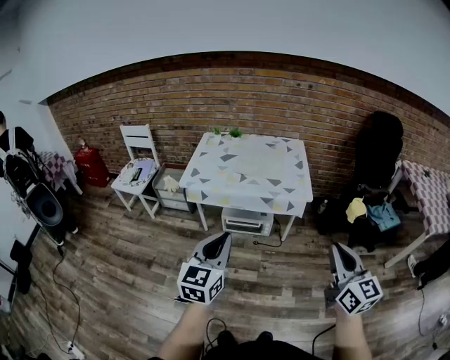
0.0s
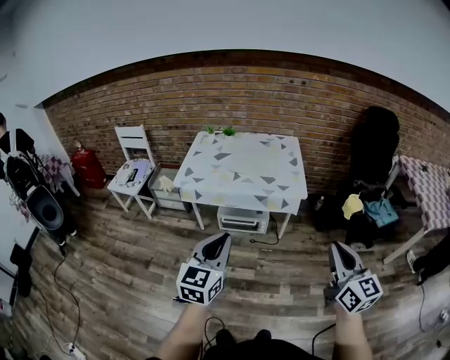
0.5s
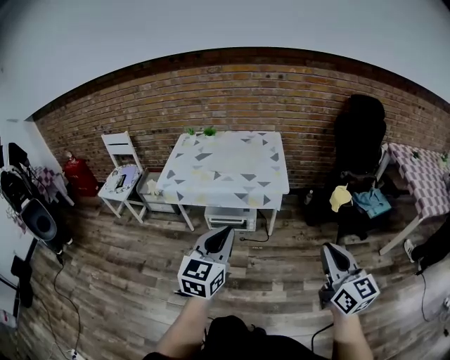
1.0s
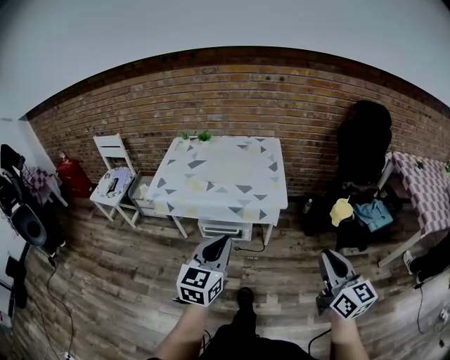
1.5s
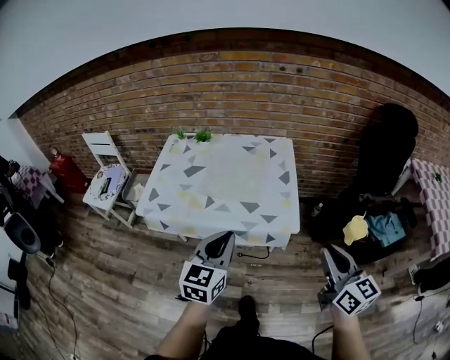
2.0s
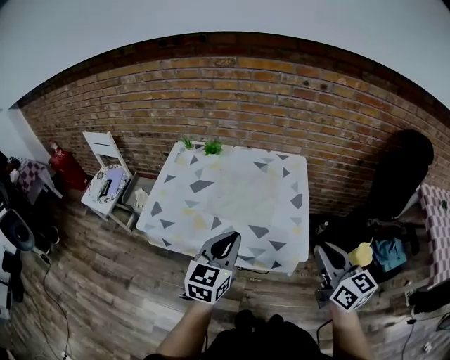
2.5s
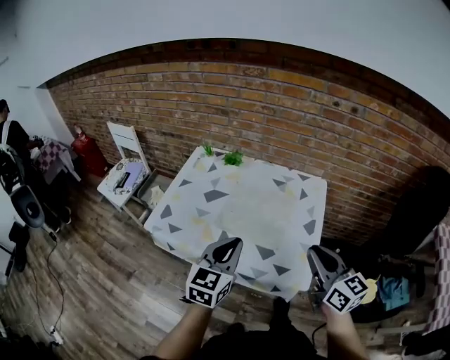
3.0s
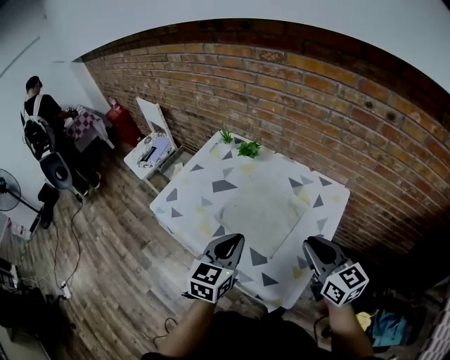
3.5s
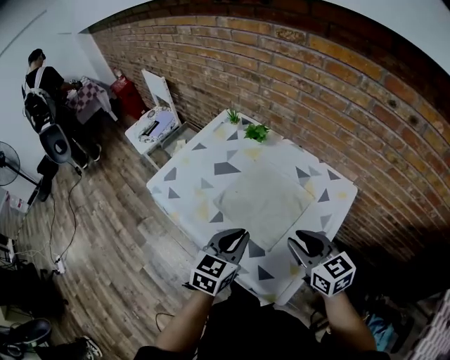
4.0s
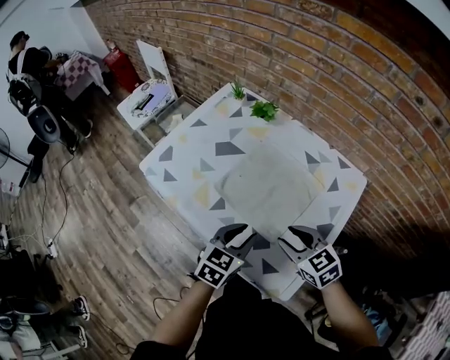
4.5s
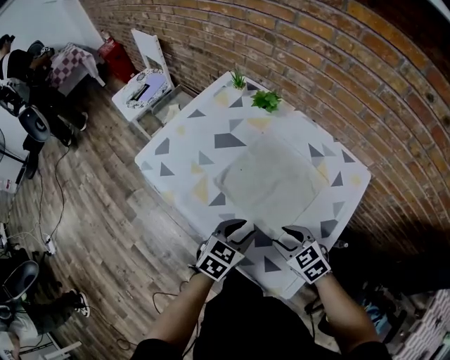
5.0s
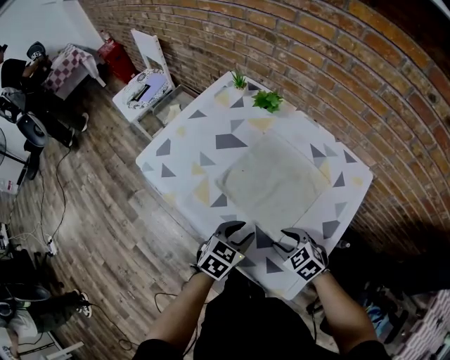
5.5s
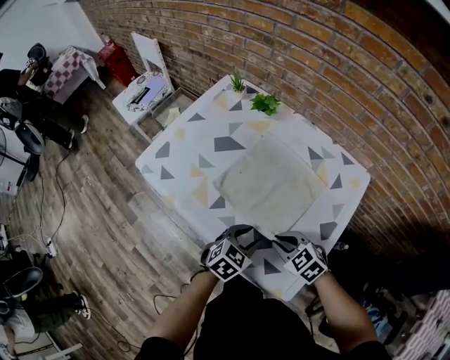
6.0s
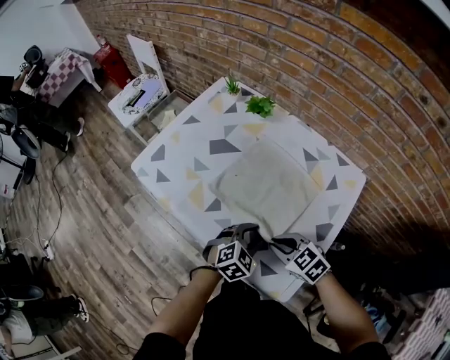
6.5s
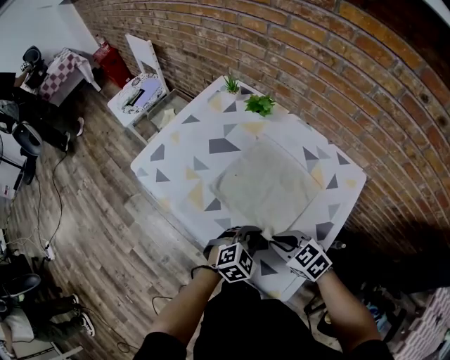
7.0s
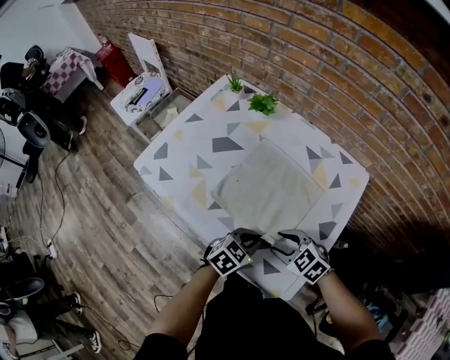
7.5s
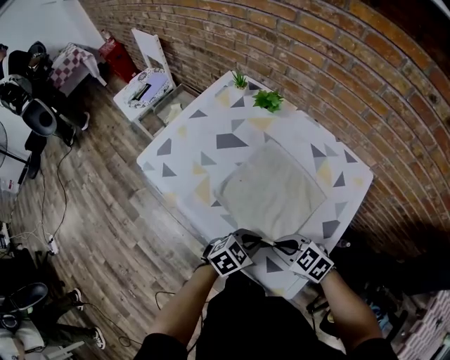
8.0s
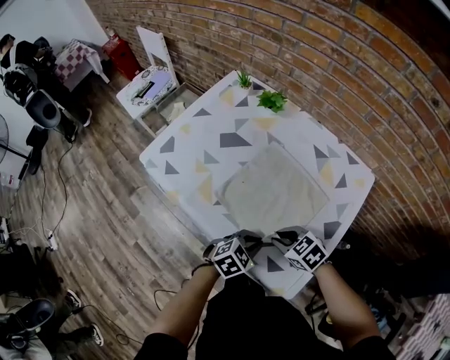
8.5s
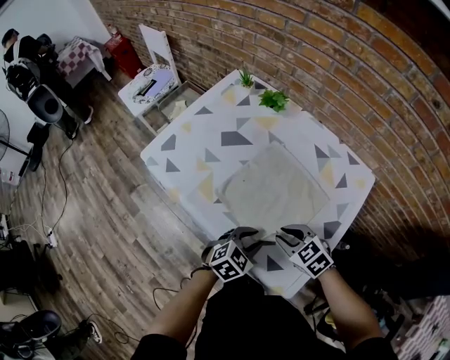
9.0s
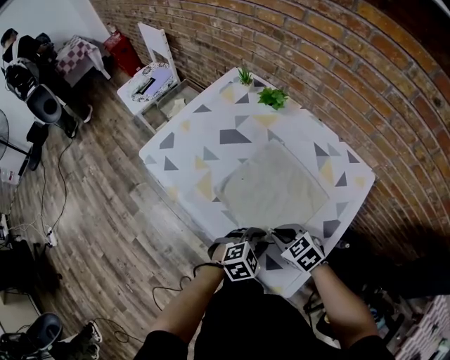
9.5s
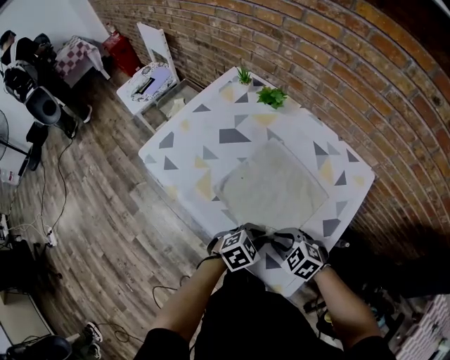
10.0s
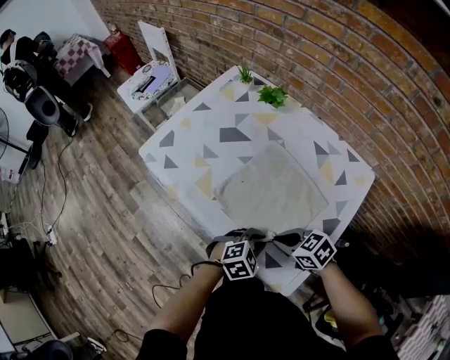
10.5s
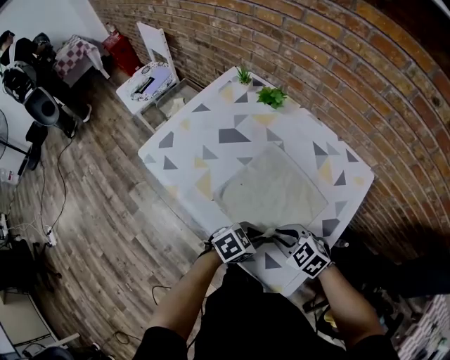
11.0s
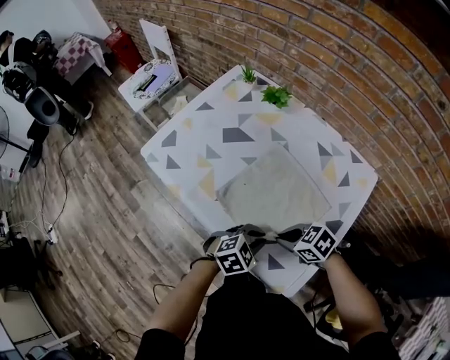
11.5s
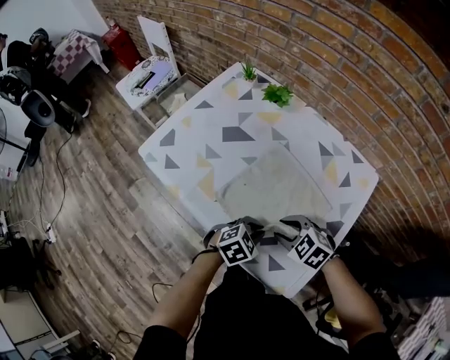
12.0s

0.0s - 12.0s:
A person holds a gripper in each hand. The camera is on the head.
0.0s - 2.0s: The left gripper travels forward and to the right by about 30 cm. Meanwhile the right gripper goes roughly 25 cm forward.
2.0s - 4.0s: The left gripper moves about 25 cm, and rotates about 30 degrees, while the right gripper changes place by roughly 40 cm, changes its angle by approximately 50 degrees, and opens its fingers.
4.0s - 6.0s: Both grippers move downward, some 15 cm. The right gripper turns by roughly 40 degrees. The left gripper changes its angle by about 30 degrees, and opens up.
6.0s - 8.0s: The left gripper closes up. Meanwhile the right gripper opens and closes again.
8.0s - 10.0s: The left gripper opens and closes again.
10.0s - 12.0s: The right gripper moves about 5 cm.

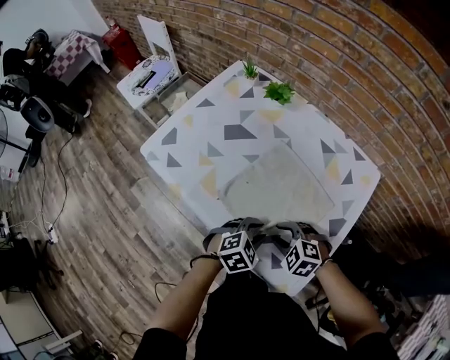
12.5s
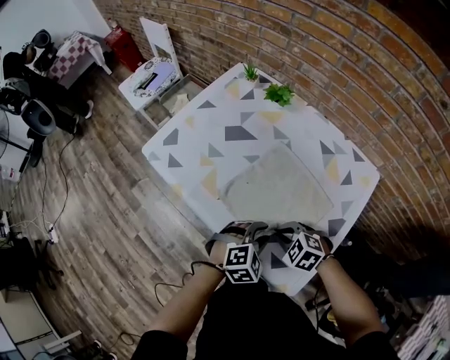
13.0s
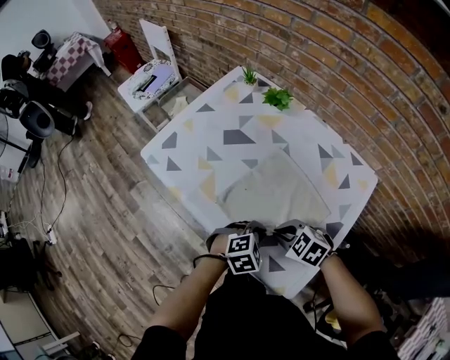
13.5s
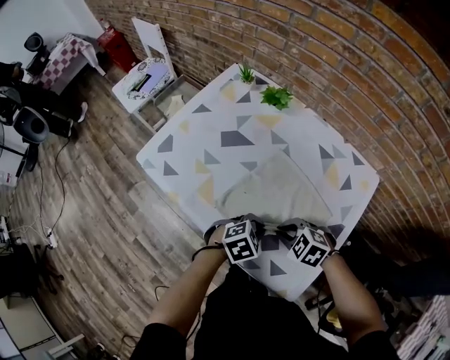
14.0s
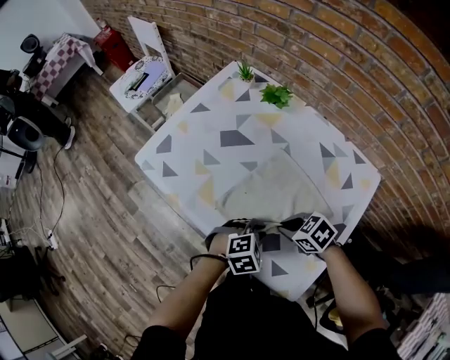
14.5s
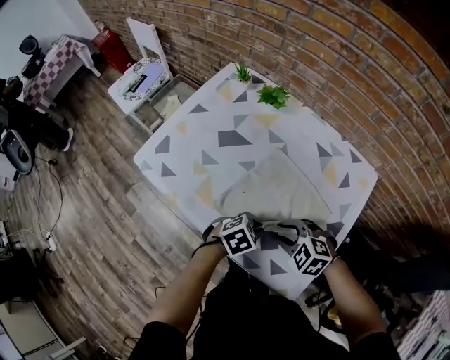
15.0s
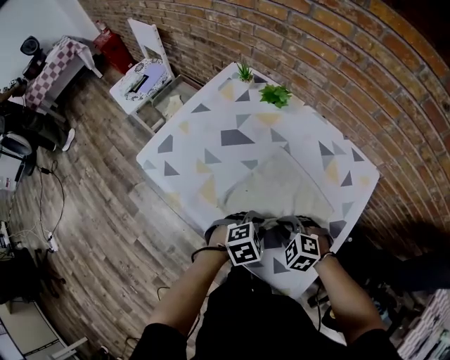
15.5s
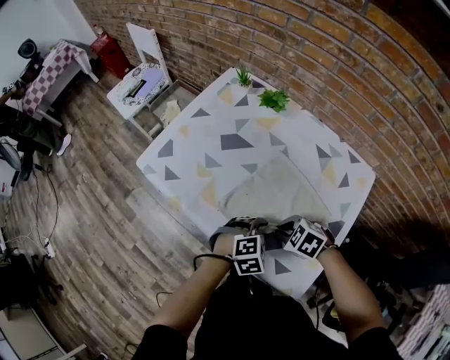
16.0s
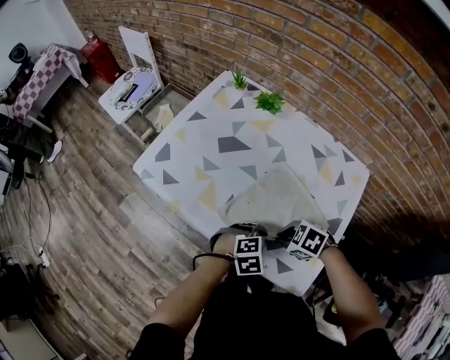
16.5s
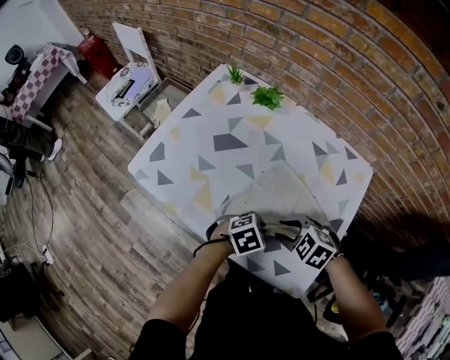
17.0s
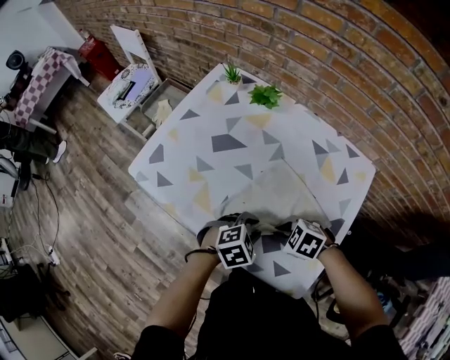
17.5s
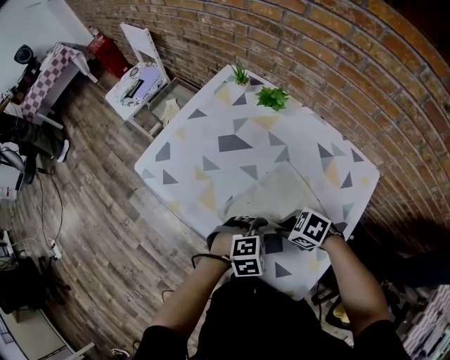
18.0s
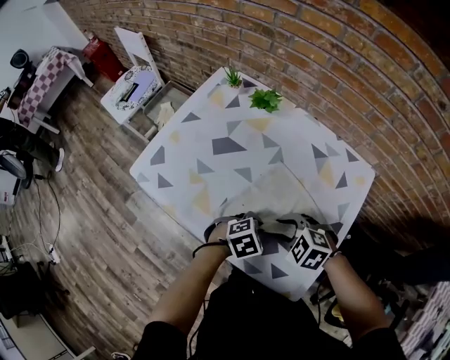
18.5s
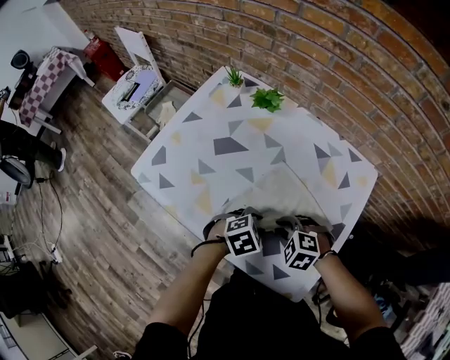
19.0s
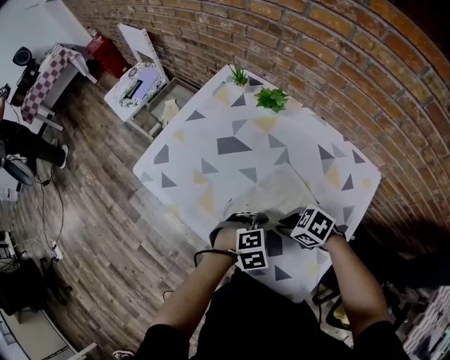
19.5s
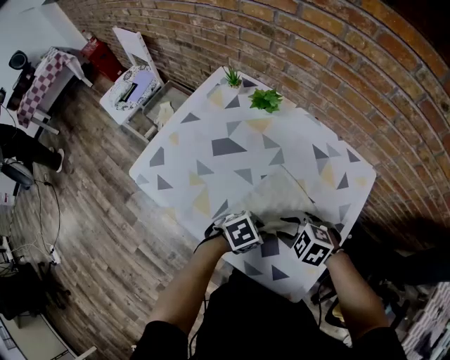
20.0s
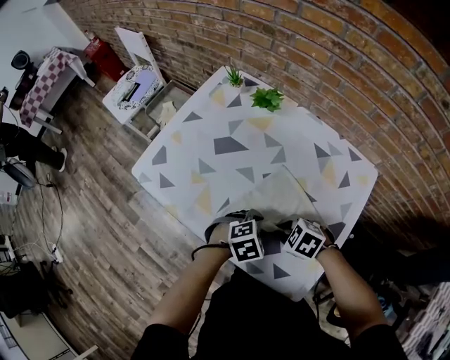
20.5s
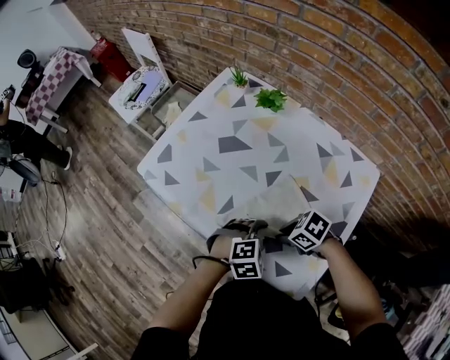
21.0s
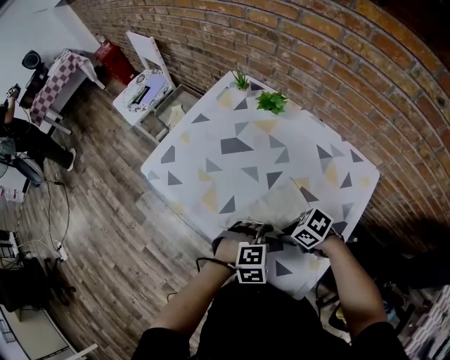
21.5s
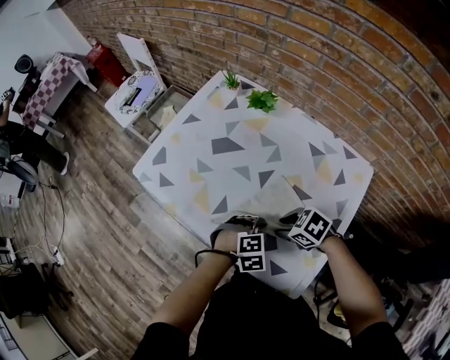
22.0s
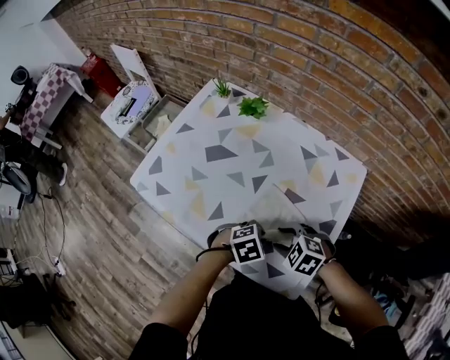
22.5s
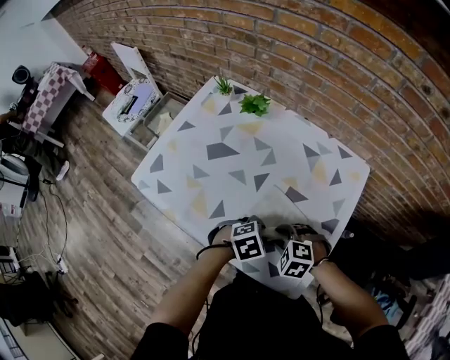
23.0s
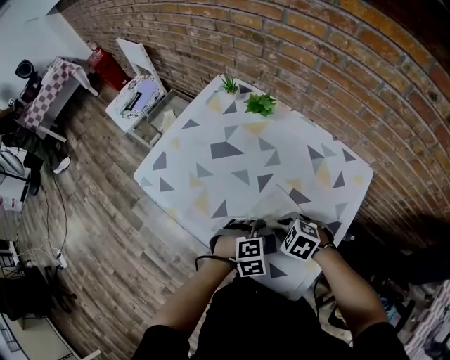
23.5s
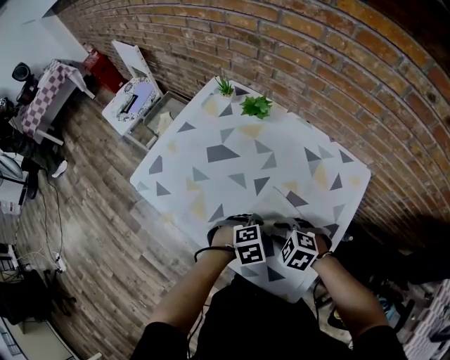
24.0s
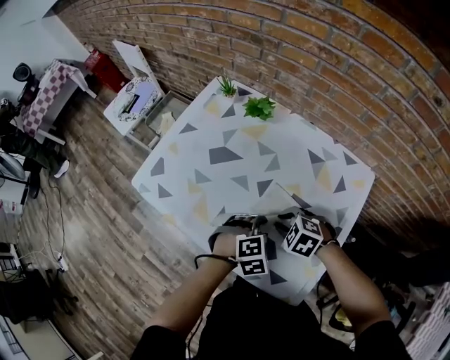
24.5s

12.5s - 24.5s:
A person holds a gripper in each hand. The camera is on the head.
12.5s - 14.5s: The right gripper moves approximately 5 cm, changes its angle by roughly 40 degrees, and closes up.
14.5s - 16.5s: The right gripper opens and closes again.
16.5s - 18.5s: The left gripper opens, then closes once more. The right gripper goes up and down, some 5 cm each way, reversing 2 times, swivels approximately 20 degrees, and opens.
18.5s - 20.5s: The right gripper closes up. The left gripper opens.
20.5s - 22.5s: The right gripper opens. Meanwhile the left gripper closes its fingers.
22.5s - 24.5s: The right gripper ends up roughly 5 cm from where it was, and closes its fingers, while the left gripper moves roughly 5 cm, rotates some 20 degrees, and opens its fingers.

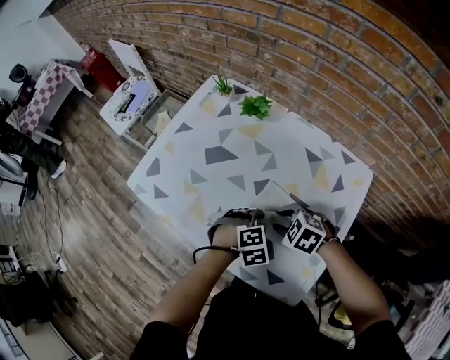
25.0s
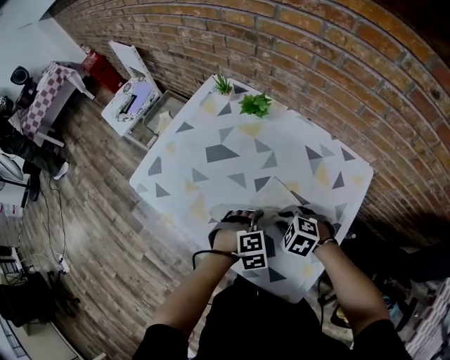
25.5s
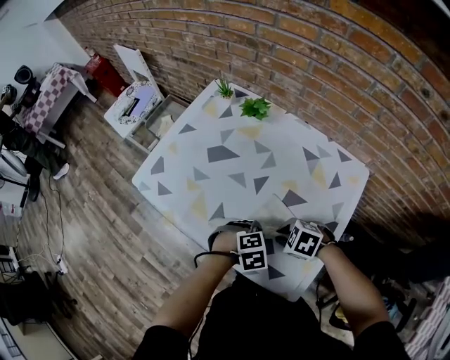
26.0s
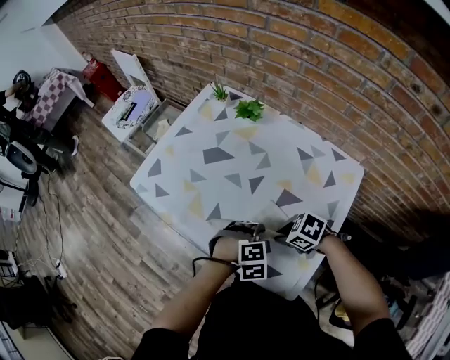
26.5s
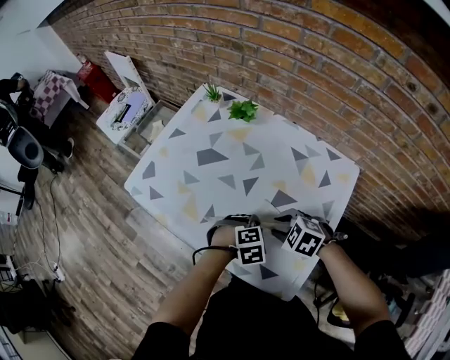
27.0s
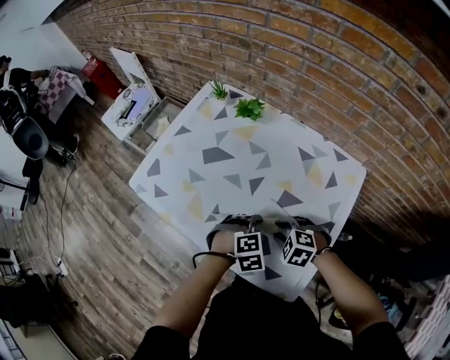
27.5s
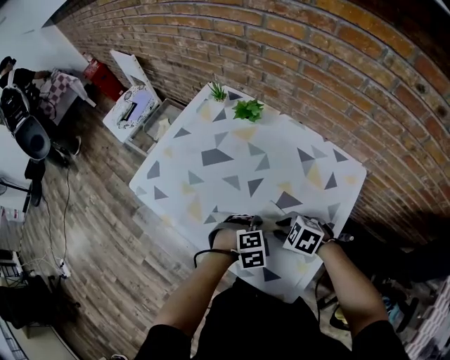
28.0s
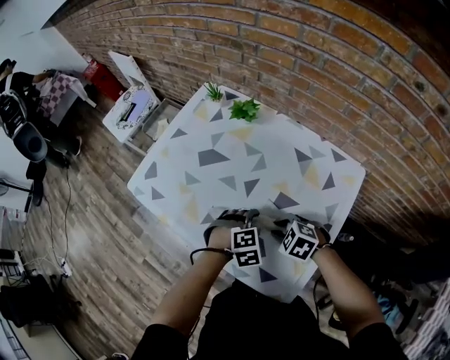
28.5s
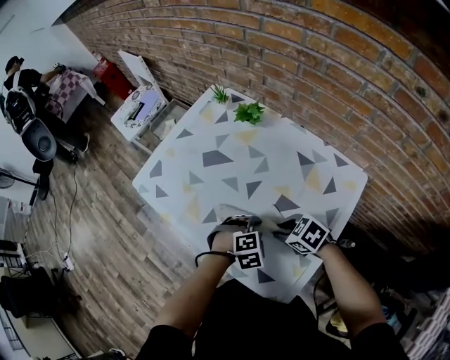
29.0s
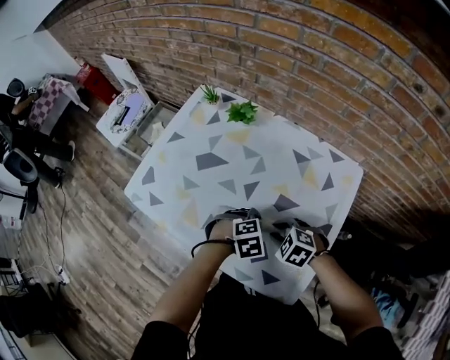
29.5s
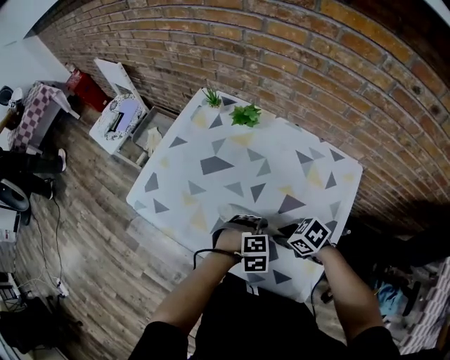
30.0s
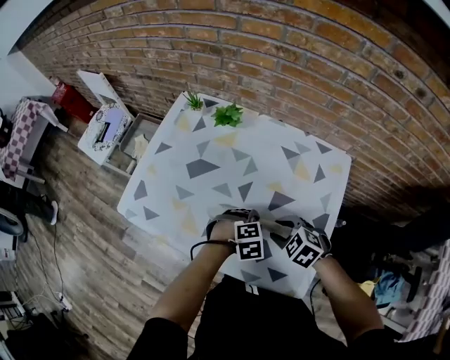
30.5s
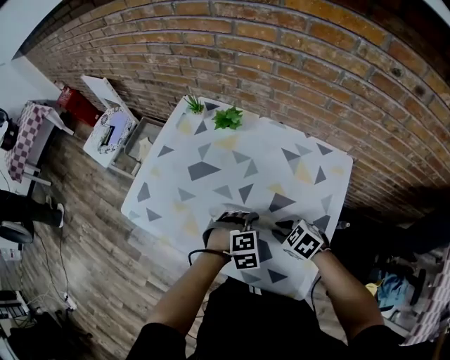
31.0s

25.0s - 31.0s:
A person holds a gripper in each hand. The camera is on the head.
25.0s - 27.0s: The left gripper opens and closes again.
